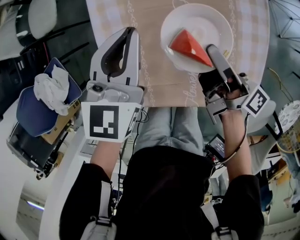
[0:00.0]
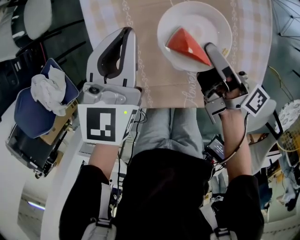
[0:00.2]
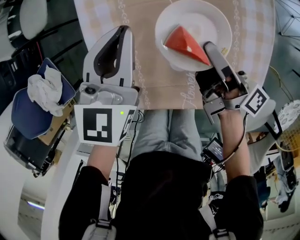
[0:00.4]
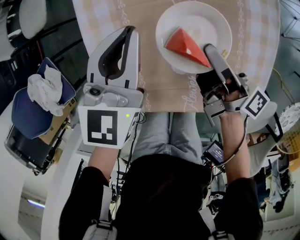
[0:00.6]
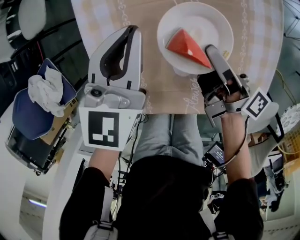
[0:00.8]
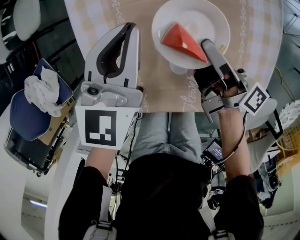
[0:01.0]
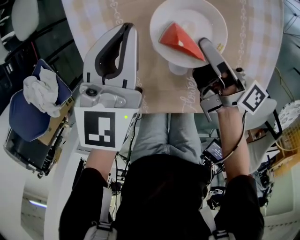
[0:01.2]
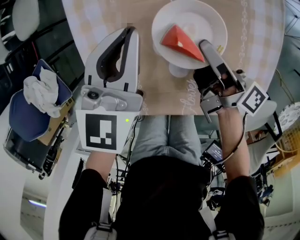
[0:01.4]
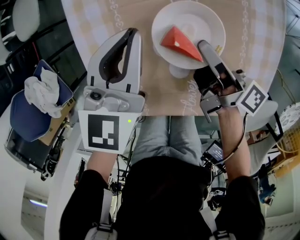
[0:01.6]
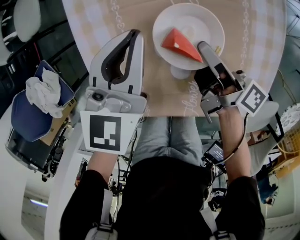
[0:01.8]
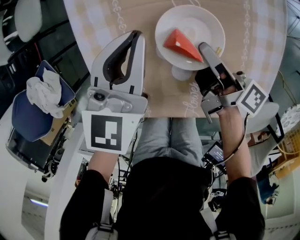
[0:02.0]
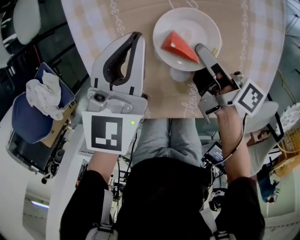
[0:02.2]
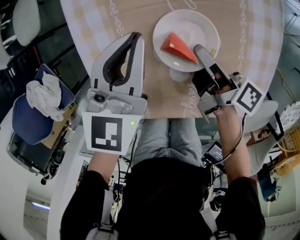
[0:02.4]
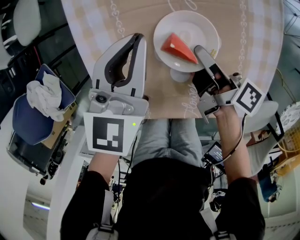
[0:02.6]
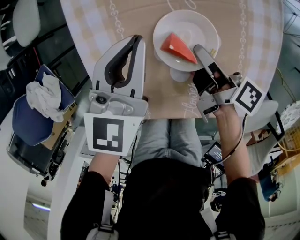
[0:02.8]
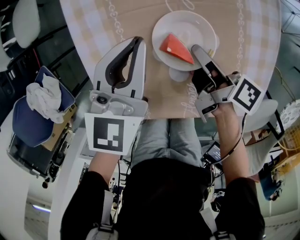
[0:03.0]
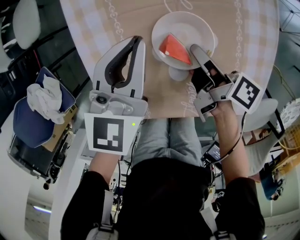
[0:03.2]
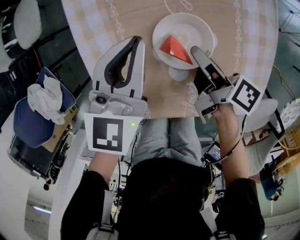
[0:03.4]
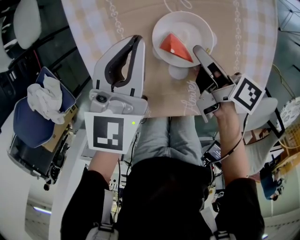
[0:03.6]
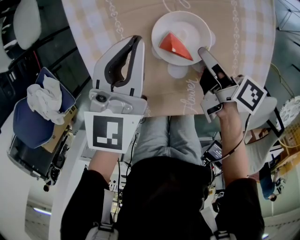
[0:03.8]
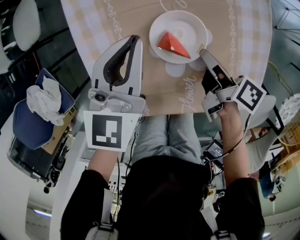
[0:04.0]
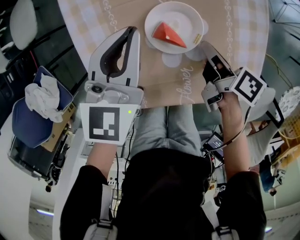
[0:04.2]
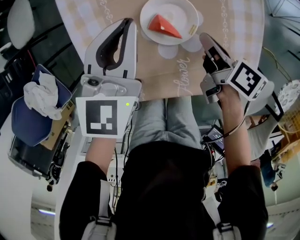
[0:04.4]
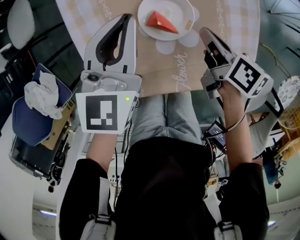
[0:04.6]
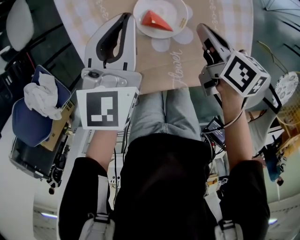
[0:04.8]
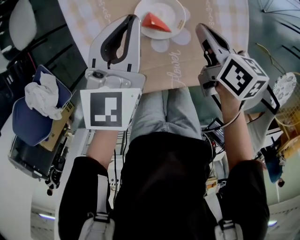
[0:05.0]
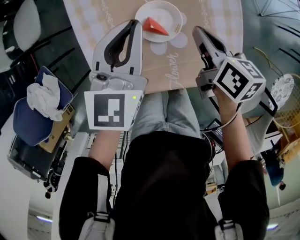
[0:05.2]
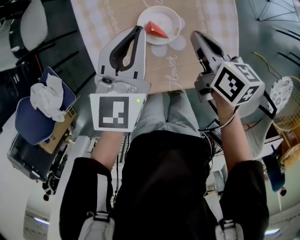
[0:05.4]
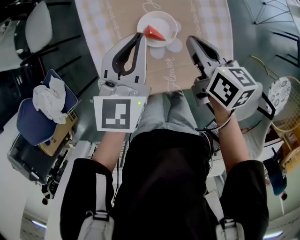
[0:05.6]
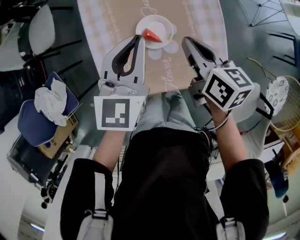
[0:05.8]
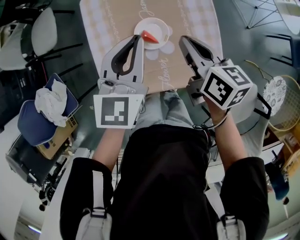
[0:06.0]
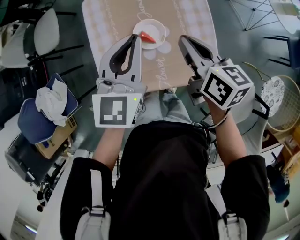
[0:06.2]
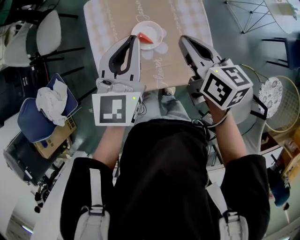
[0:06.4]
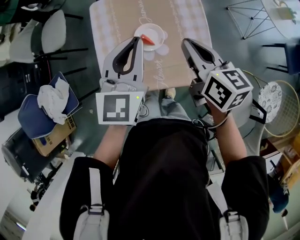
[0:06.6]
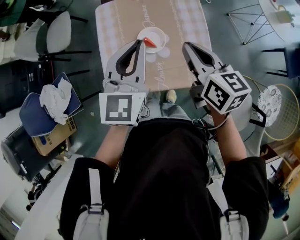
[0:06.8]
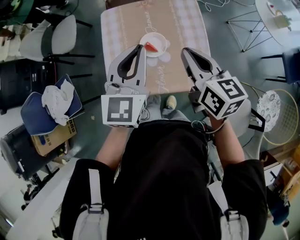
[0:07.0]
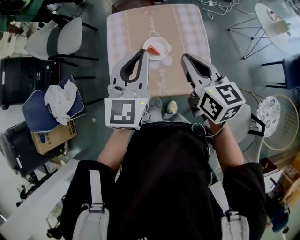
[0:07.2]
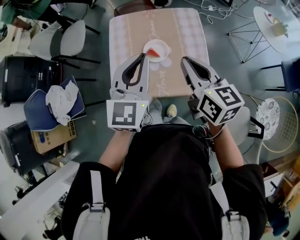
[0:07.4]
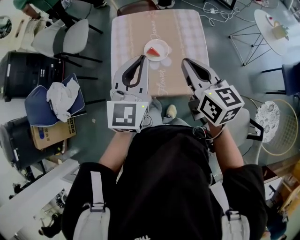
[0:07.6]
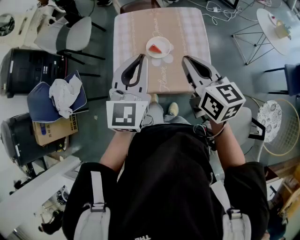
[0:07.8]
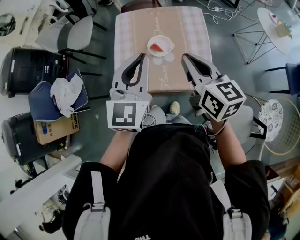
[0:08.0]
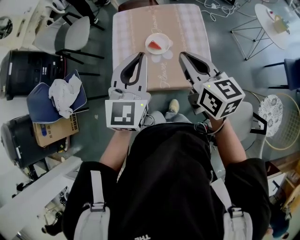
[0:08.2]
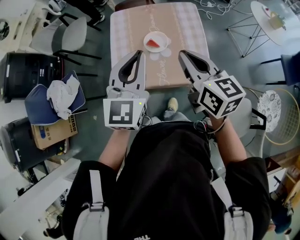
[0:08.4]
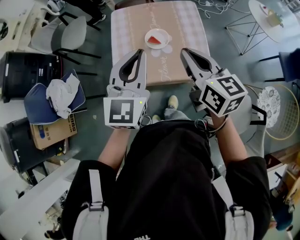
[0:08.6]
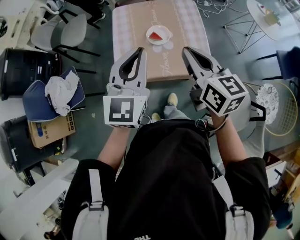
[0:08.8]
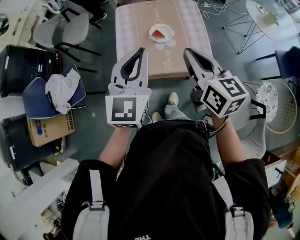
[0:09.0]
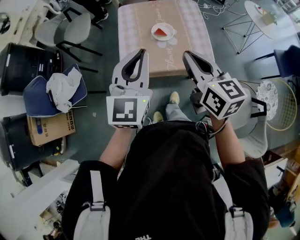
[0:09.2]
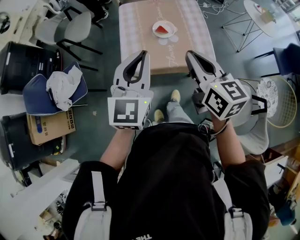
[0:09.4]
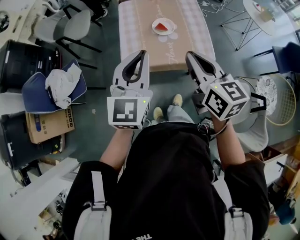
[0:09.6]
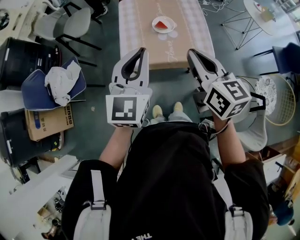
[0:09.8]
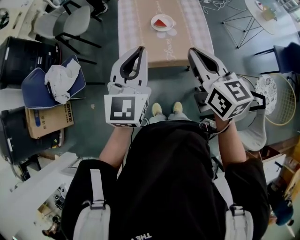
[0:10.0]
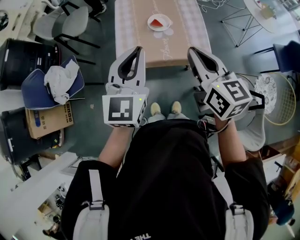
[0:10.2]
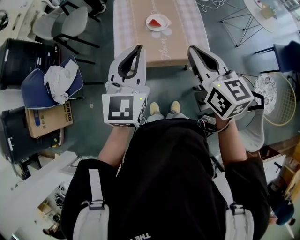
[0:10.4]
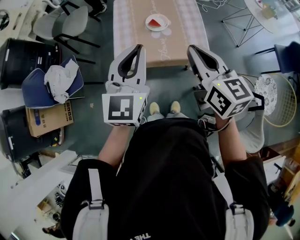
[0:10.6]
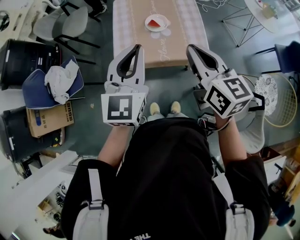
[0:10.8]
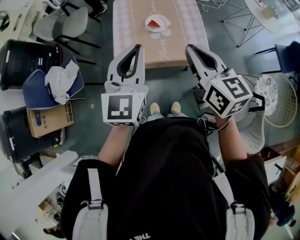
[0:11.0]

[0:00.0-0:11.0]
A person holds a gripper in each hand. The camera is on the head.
0:00.0 to 0:01.6: The left gripper heads downward, covering approximately 10 cm.
0:03.2 to 0:04.8: The left gripper goes approximately 5 cm upward.
0:04.8 to 0:06.2: The left gripper moves upward, approximately 15 cm.
0:06.2 to 0:07.8: The left gripper moves approximately 20 cm.
0:07.8 to 0:09.4: The left gripper moves some 20 cm.
0:09.4 to 0:11.0: The left gripper ends up roughly 5 cm from where it was.

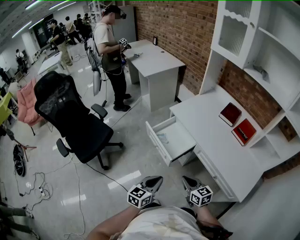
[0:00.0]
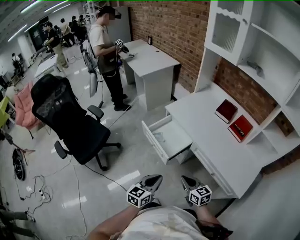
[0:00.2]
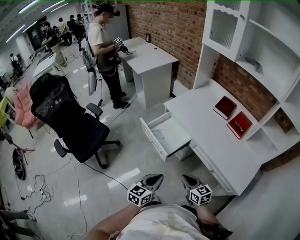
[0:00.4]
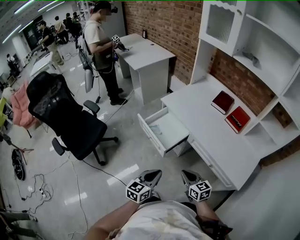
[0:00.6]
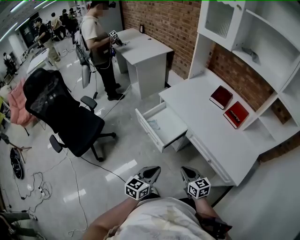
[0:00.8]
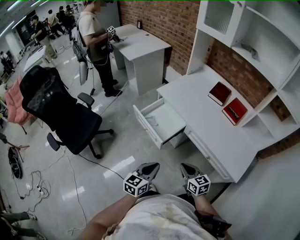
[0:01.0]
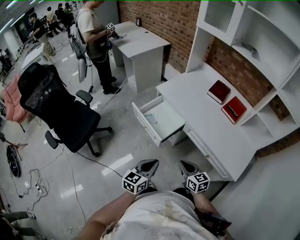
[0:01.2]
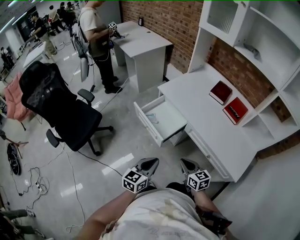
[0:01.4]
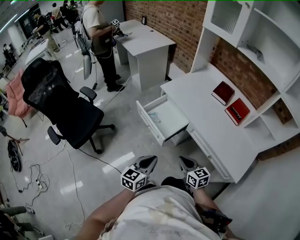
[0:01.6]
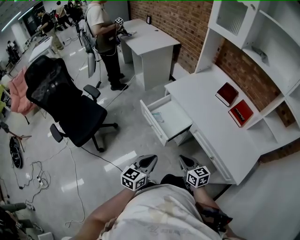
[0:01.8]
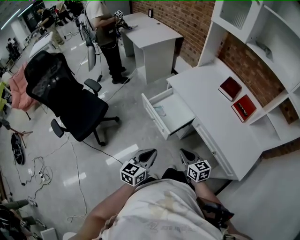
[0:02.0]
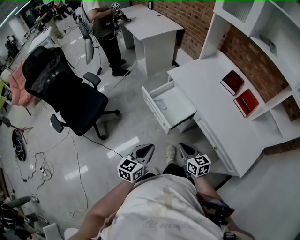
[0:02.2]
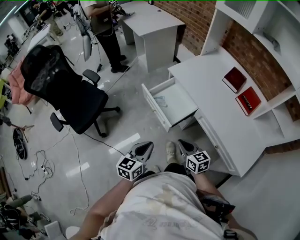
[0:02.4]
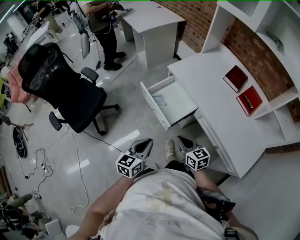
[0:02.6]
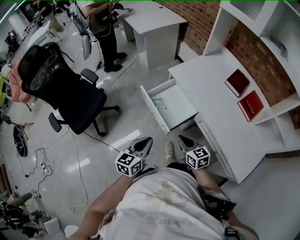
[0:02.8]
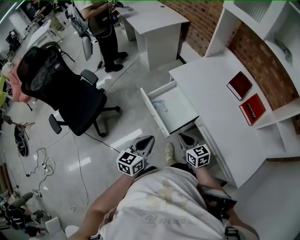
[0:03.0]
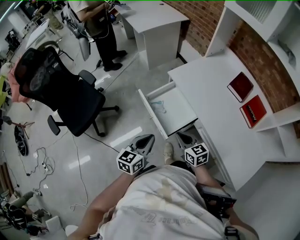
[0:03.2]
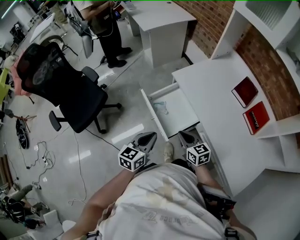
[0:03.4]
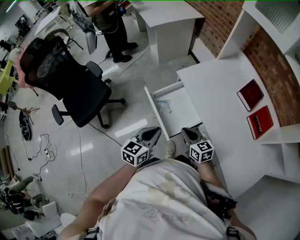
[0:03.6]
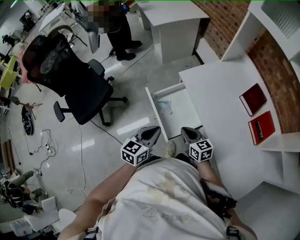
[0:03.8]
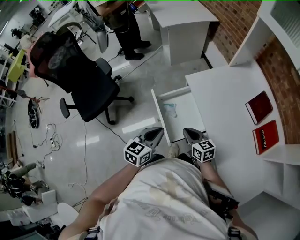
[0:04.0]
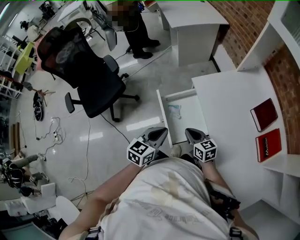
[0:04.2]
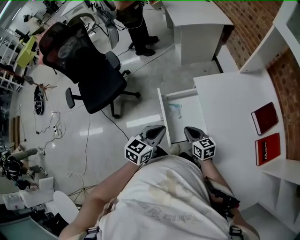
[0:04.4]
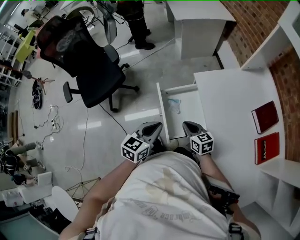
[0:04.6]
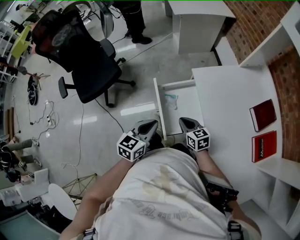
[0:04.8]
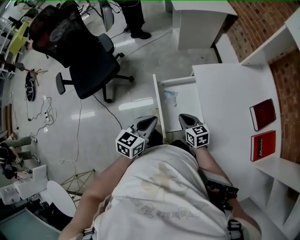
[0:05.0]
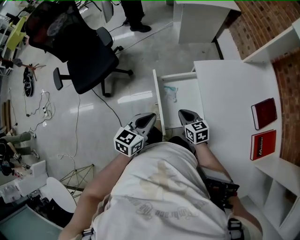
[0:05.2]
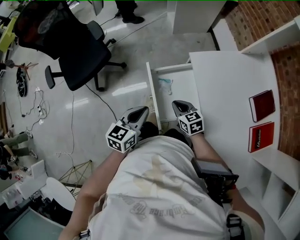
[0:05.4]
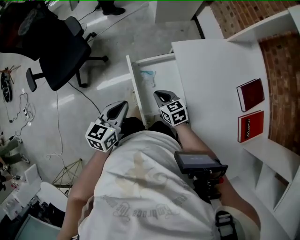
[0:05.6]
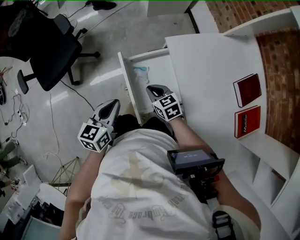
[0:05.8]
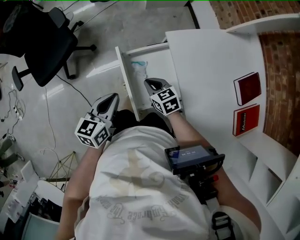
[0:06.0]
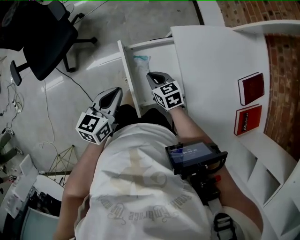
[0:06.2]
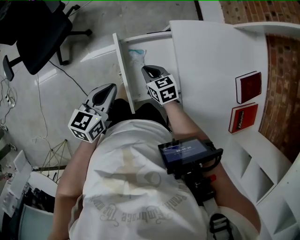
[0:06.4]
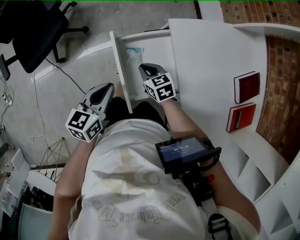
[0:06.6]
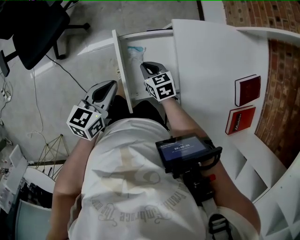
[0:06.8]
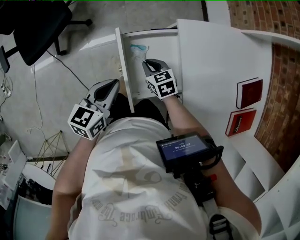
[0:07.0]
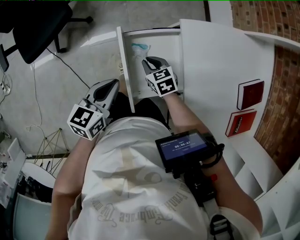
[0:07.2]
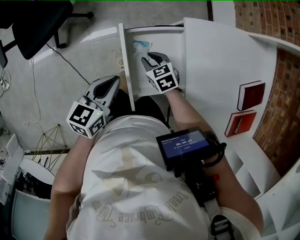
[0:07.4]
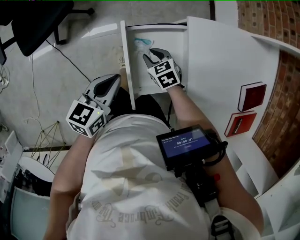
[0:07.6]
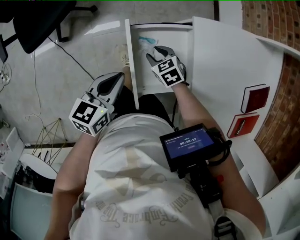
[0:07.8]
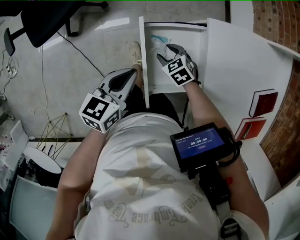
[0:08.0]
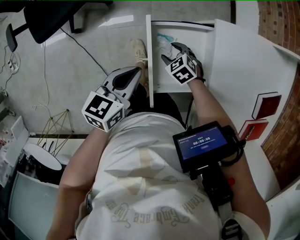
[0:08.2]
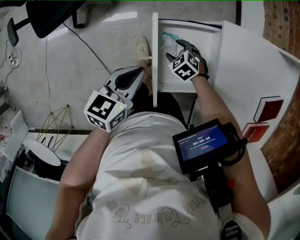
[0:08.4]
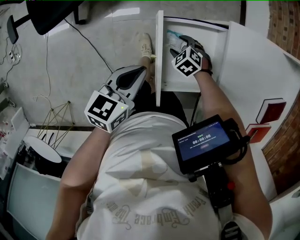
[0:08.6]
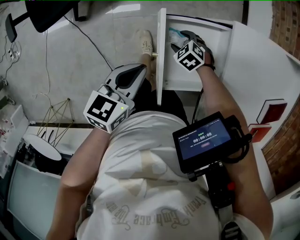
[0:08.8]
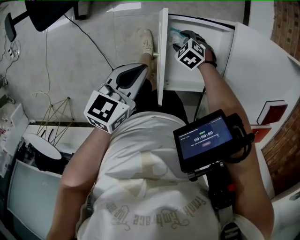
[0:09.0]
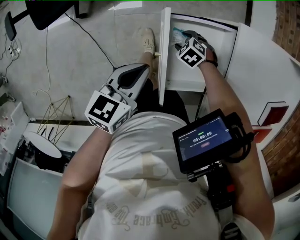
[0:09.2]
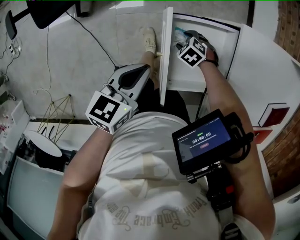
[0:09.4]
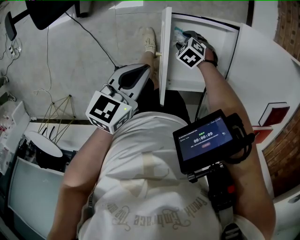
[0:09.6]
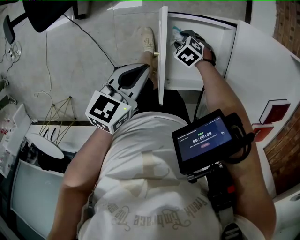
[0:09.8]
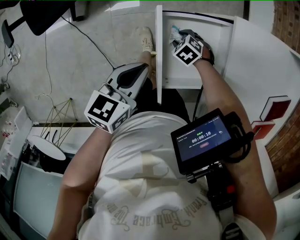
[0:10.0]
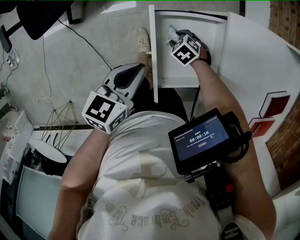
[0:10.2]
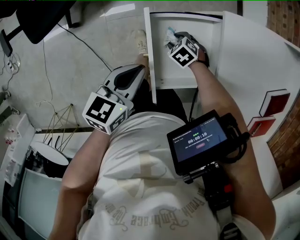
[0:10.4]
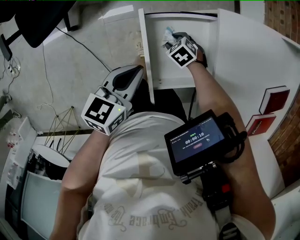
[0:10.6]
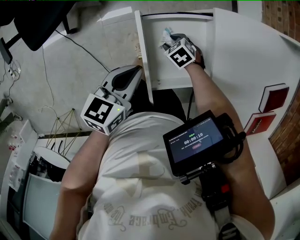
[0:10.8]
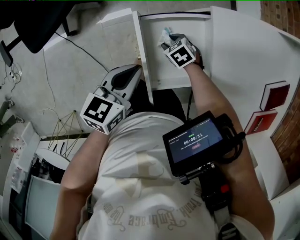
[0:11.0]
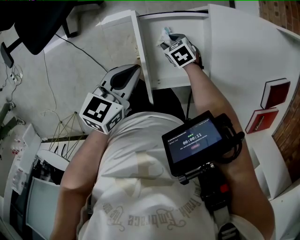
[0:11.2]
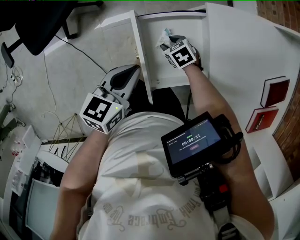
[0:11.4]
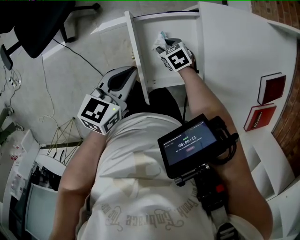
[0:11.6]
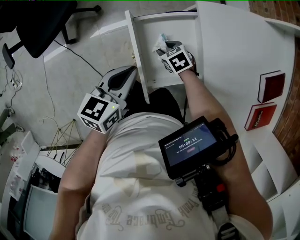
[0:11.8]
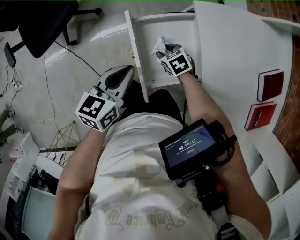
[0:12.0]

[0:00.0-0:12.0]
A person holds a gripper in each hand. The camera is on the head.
0:00.0 to 0:01.6: The grippers make only small movements.
0:01.6 to 0:03.0: Both grippers travel together forward, some 15 cm.
0:03.0 to 0:04.4: The left gripper is displaced forward and to the right by about 15 cm; the right gripper is displaced forward by approximately 15 cm.
0:04.4 to 0:06.0: The right gripper shifts some 10 cm forward and downward, while the left gripper shifts roughly 10 cm downward, forward and to the left.
0:06.0 to 0:07.6: The right gripper heads downward and forward, covering some 10 cm, and opens up. Meanwhile the left gripper changes place by roughly 5 cm.
0:07.6 to 0:09.0: The right gripper shifts some 10 cm downward, changes its angle by roughly 40 degrees, and opens its fingers.
0:09.0 to 0:10.4: The grippers move only a little.
0:10.4 to 0:12.0: The right gripper goes approximately 5 cm upward, and changes its angle by some 30 degrees. Meanwhile the left gripper changes place by about 5 cm.

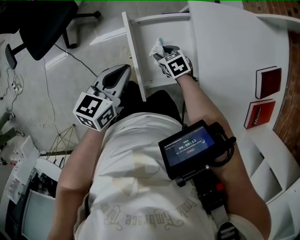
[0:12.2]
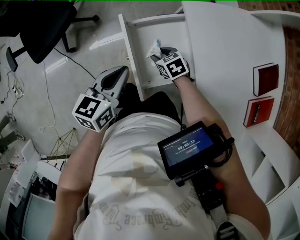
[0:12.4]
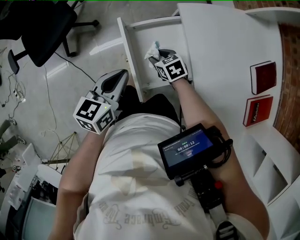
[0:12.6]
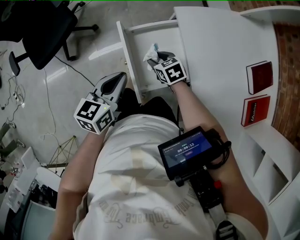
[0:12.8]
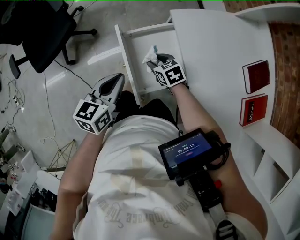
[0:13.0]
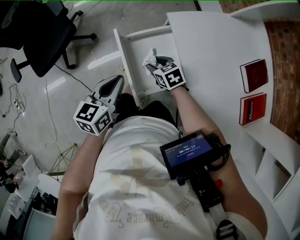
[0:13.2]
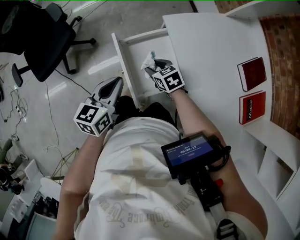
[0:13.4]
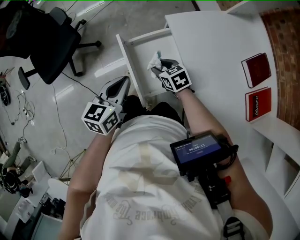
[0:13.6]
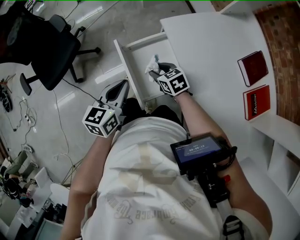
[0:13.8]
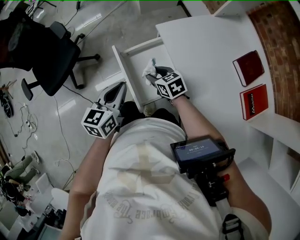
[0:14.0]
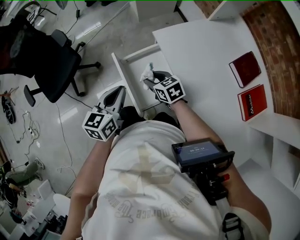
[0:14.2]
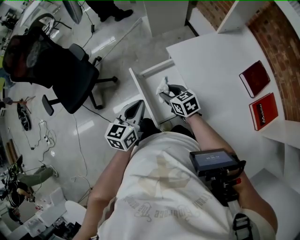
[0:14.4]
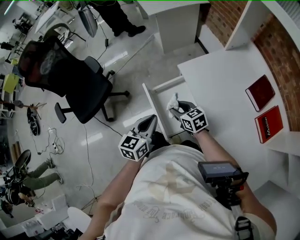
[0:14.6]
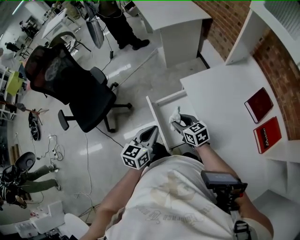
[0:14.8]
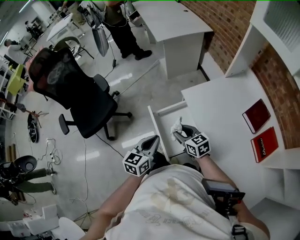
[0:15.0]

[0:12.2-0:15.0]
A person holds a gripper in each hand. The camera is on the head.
0:12.2 to 0:13.6: The right gripper goes some 10 cm upward; the left gripper is displaced upward by roughly 5 cm.
0:13.6 to 0:15.0: The right gripper heads upward, covering roughly 15 cm, and swivels approximately 20 degrees. The left gripper moves upward, approximately 5 cm.
